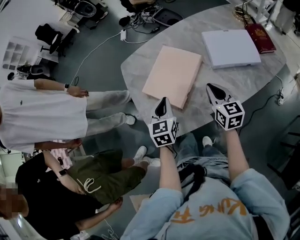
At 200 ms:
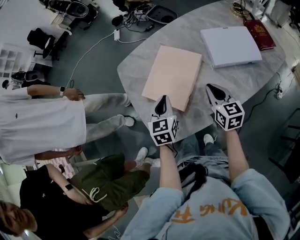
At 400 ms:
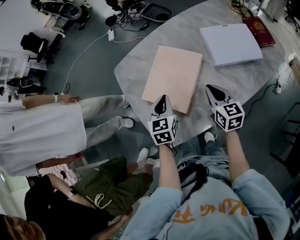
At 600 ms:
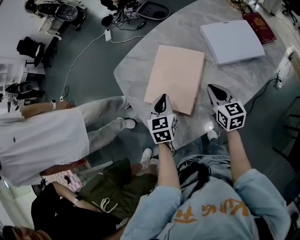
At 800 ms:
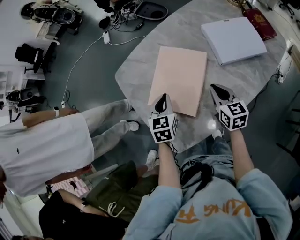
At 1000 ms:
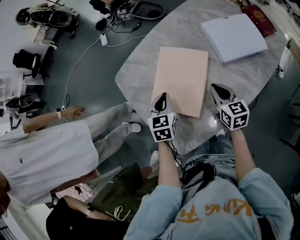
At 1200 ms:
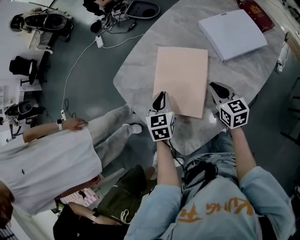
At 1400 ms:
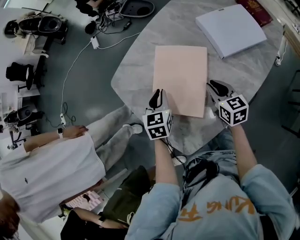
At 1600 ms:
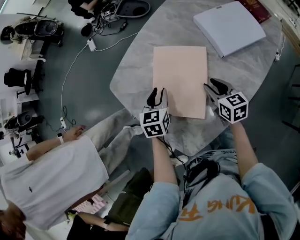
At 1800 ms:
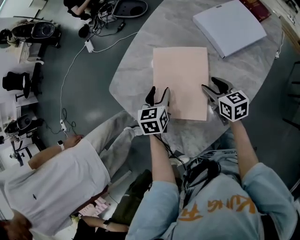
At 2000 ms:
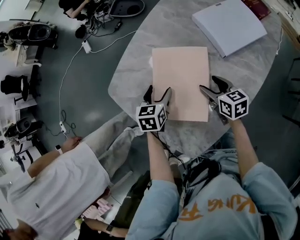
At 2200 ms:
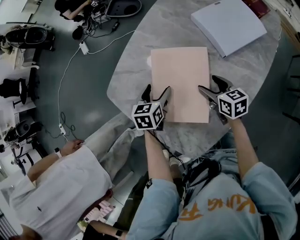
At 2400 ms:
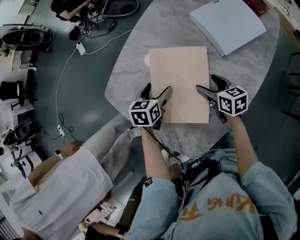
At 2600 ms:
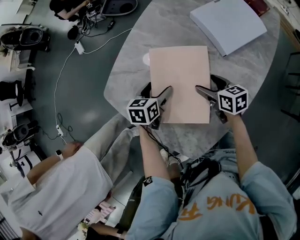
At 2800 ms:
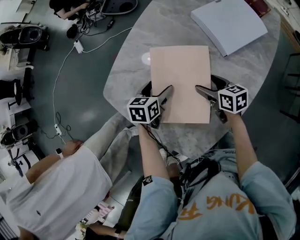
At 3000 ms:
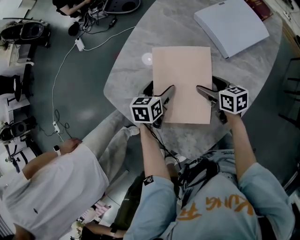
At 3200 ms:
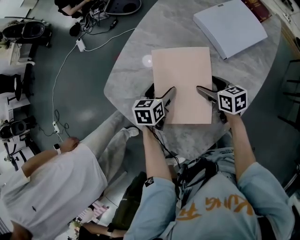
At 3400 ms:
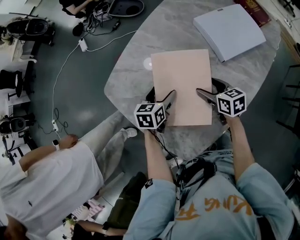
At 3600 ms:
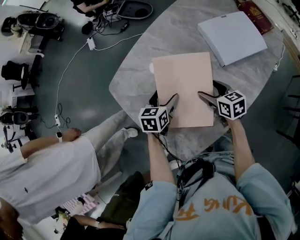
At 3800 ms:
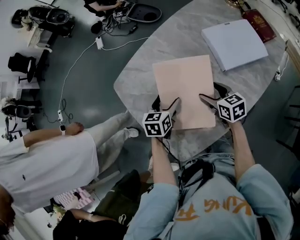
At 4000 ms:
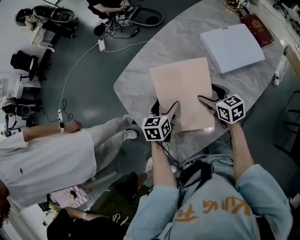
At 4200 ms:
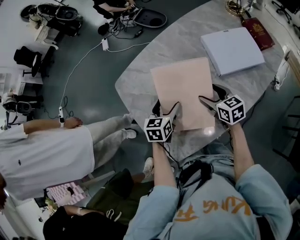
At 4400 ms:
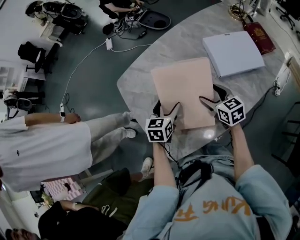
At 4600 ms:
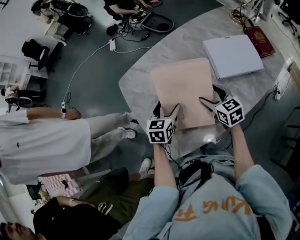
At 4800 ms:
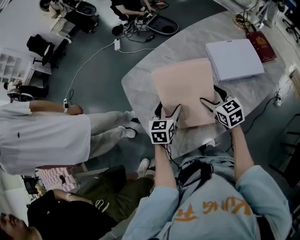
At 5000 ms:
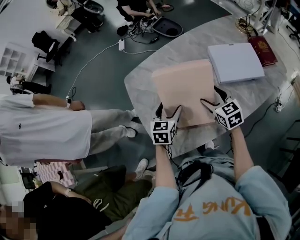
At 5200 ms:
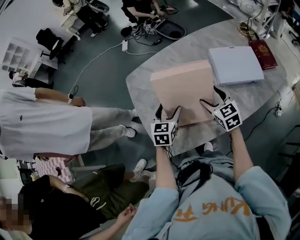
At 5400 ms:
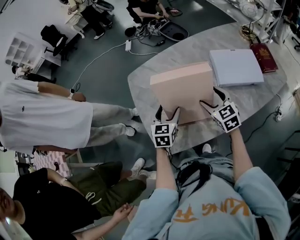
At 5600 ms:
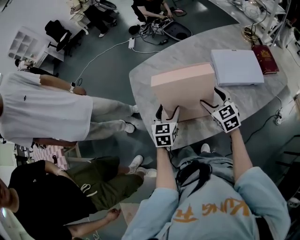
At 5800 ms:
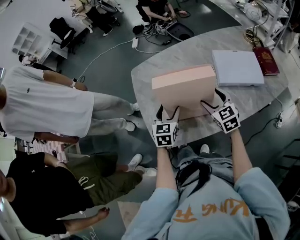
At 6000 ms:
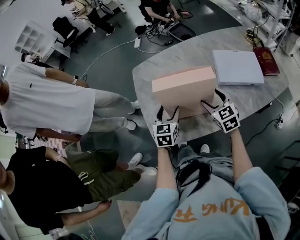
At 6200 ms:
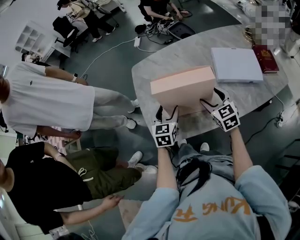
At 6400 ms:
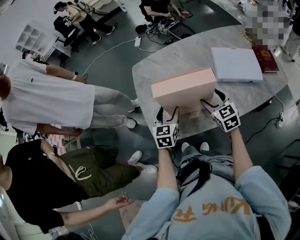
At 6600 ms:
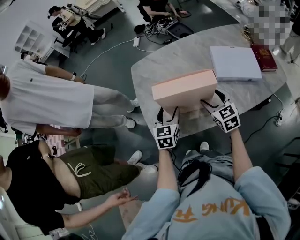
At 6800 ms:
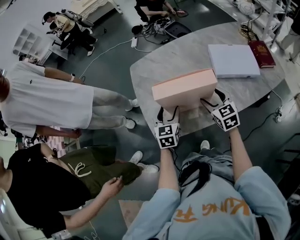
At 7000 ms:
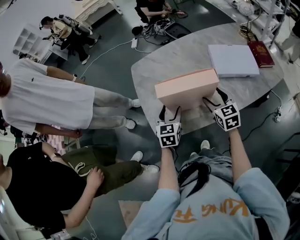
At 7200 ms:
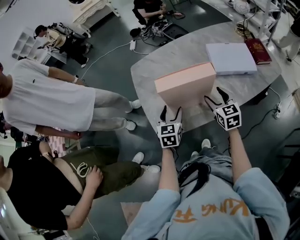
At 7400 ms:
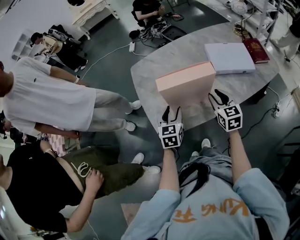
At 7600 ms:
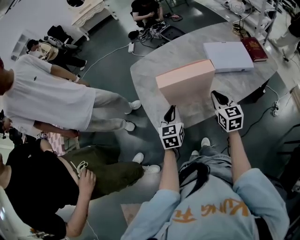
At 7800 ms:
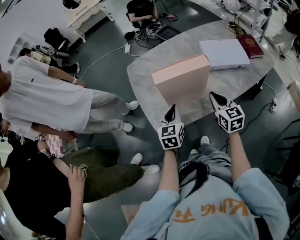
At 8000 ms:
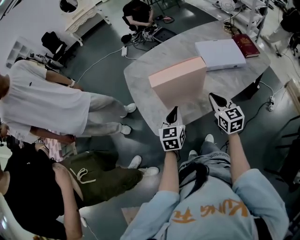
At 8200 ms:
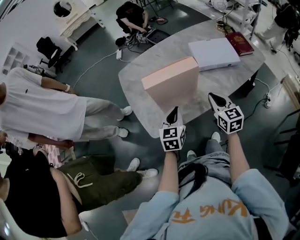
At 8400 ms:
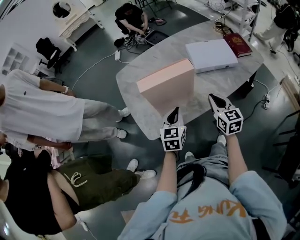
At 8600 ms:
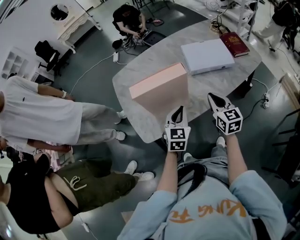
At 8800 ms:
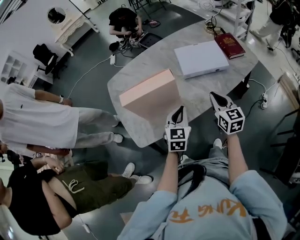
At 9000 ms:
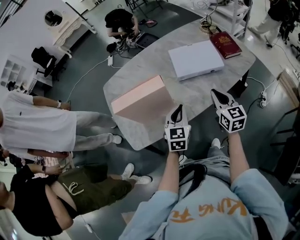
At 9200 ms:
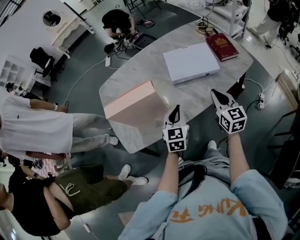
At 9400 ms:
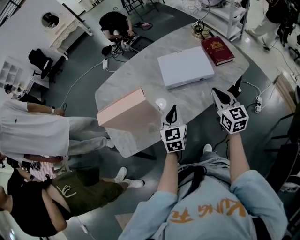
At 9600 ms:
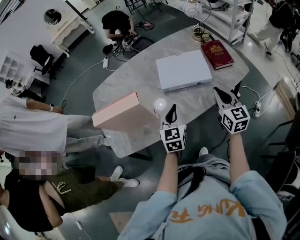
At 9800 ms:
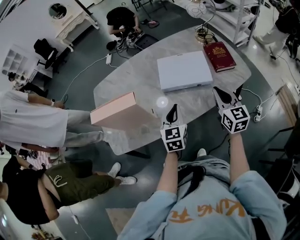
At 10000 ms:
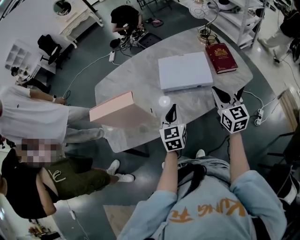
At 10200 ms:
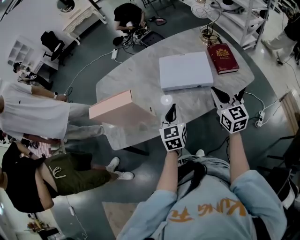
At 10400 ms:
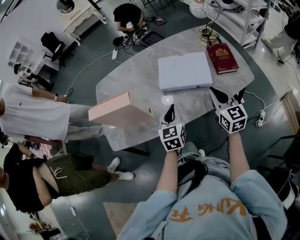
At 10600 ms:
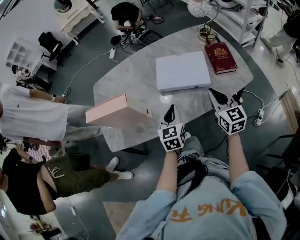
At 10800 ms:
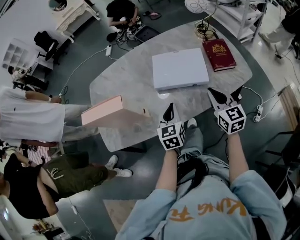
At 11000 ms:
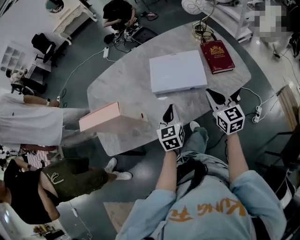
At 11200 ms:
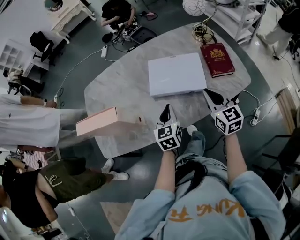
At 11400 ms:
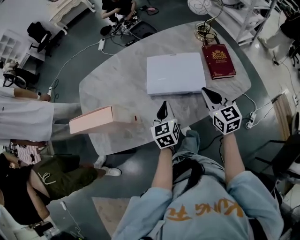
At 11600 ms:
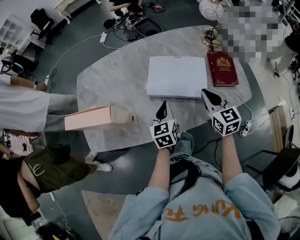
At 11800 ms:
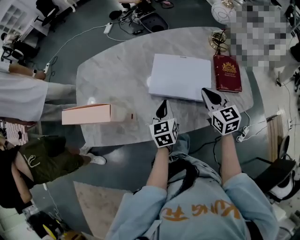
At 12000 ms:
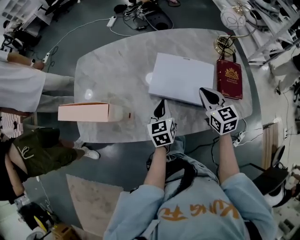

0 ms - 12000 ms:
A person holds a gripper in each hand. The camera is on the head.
0 ms - 1600 ms: The right gripper heads downward, forward and to the left, covering approximately 15 cm, and rotates approximately 20 degrees. Meanwhile the left gripper goes about 20 cm forward and downward, and rotates approximately 30 degrees.
1600 ms - 3000 ms: The left gripper shifts some 5 cm downward, turns by about 20 degrees, and opens its fingers. The right gripper shifts by some 5 cm, and opens its fingers.
3000 ms - 4400 ms: The left gripper moves backward and upward, about 10 cm, and swivels approximately 30 degrees; the right gripper moves upward, roughly 10 cm, and swivels some 30 degrees.
4400 ms - 6000 ms: The right gripper shifts about 10 cm backward and upward, and turns by approximately 30 degrees. Meanwhile the left gripper moves backward, approximately 10 cm, and swivels approximately 20 degrees.
6000 ms - 7600 ms: The grippers both shift backward by some 10 cm. The left gripper closes up; the right gripper rotates approximately 20 degrees, and closes.
7600 ms - 9000 ms: The grippers both shift to the right by about 20 cm.
9000 ms - 10400 ms: Both grippers move to the right and forward, roughly 15 cm. The left gripper rotates about 20 degrees.
10400 ms - 12000 ms: The left gripper heads forward and downward, covering approximately 15 cm, while the right gripper shifts approximately 15 cm forward, and rotates some 20 degrees.

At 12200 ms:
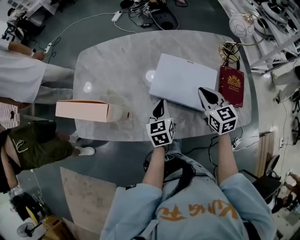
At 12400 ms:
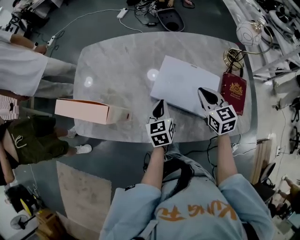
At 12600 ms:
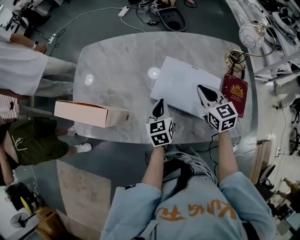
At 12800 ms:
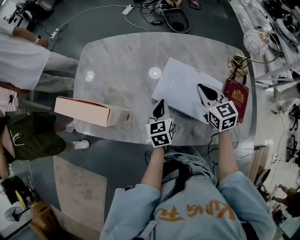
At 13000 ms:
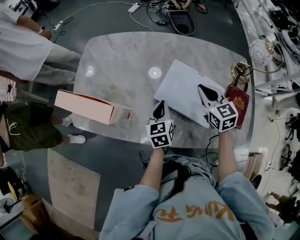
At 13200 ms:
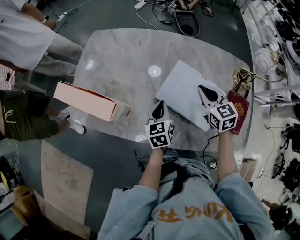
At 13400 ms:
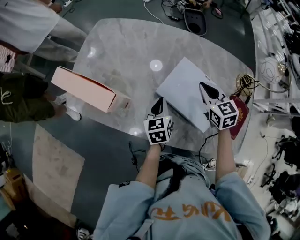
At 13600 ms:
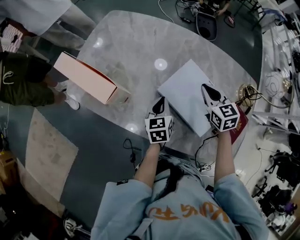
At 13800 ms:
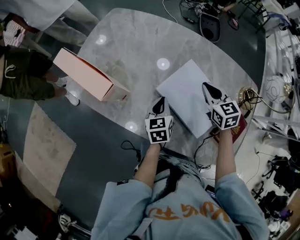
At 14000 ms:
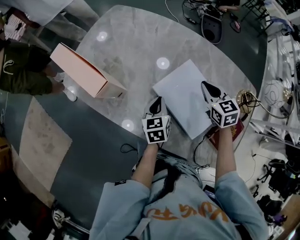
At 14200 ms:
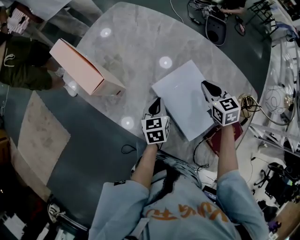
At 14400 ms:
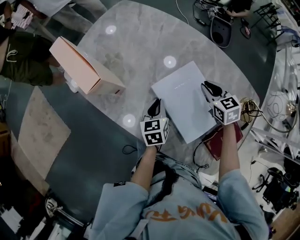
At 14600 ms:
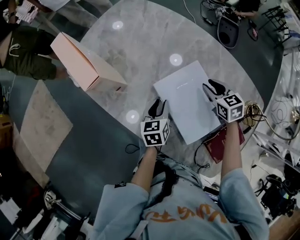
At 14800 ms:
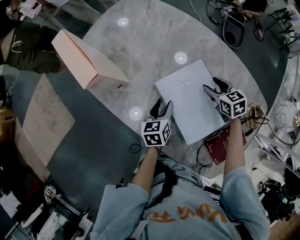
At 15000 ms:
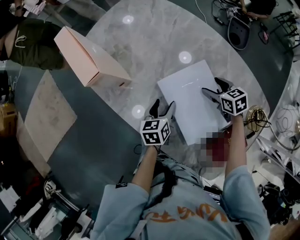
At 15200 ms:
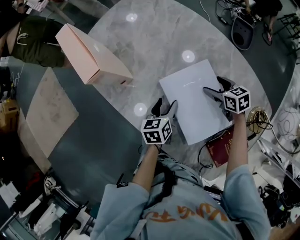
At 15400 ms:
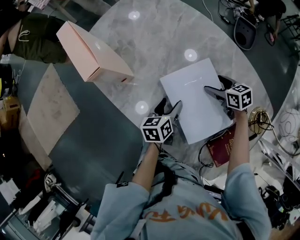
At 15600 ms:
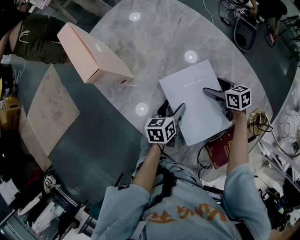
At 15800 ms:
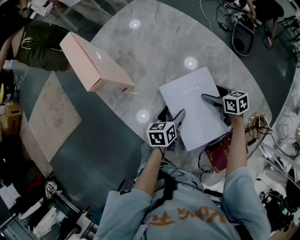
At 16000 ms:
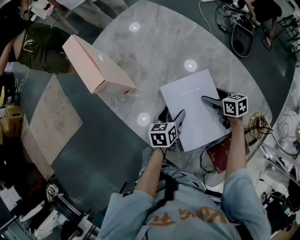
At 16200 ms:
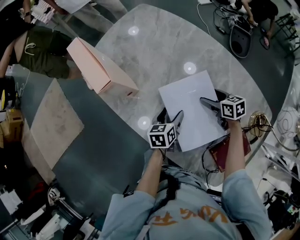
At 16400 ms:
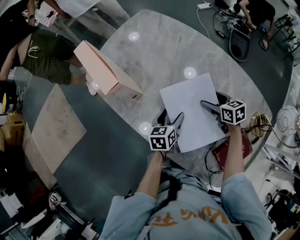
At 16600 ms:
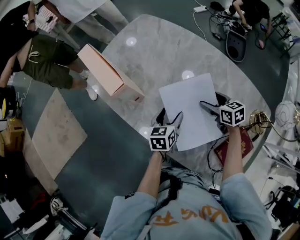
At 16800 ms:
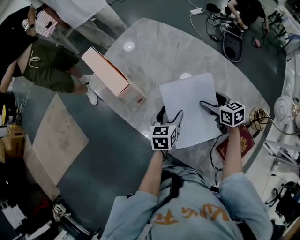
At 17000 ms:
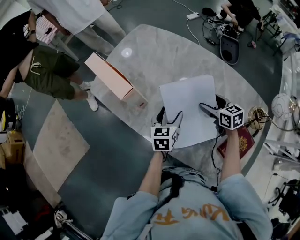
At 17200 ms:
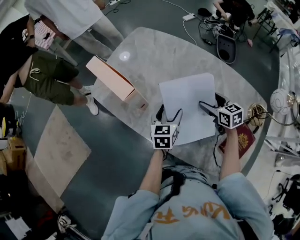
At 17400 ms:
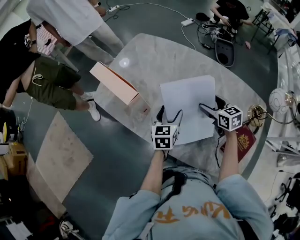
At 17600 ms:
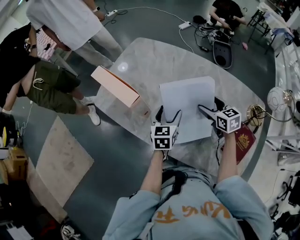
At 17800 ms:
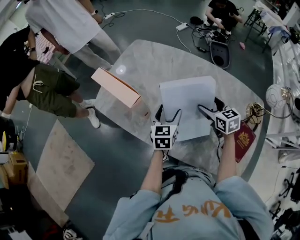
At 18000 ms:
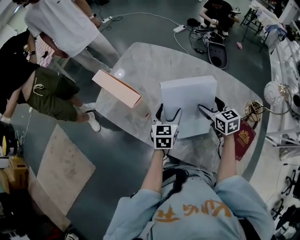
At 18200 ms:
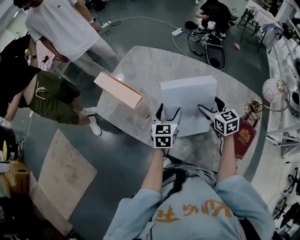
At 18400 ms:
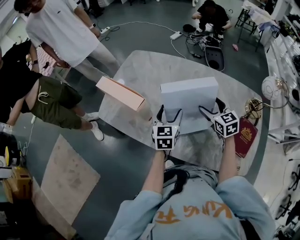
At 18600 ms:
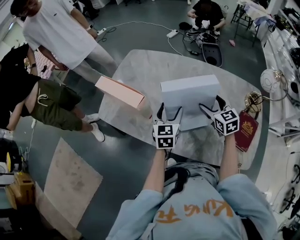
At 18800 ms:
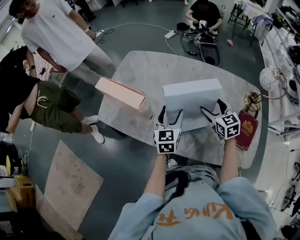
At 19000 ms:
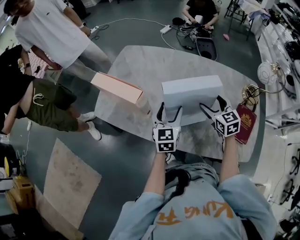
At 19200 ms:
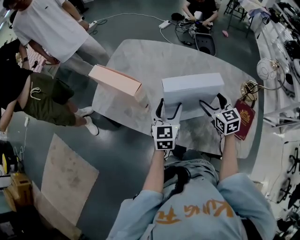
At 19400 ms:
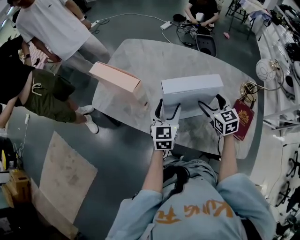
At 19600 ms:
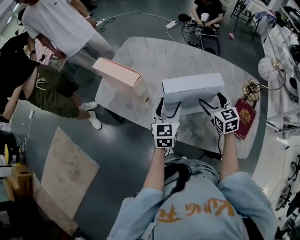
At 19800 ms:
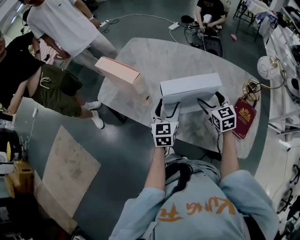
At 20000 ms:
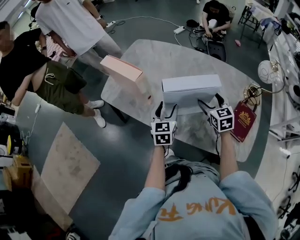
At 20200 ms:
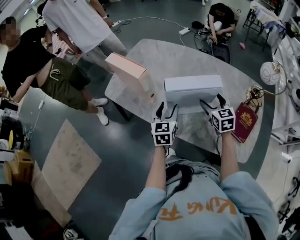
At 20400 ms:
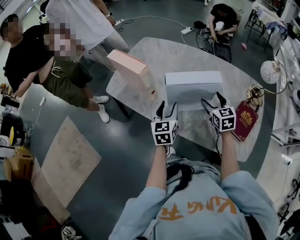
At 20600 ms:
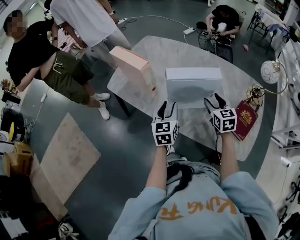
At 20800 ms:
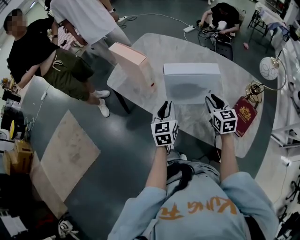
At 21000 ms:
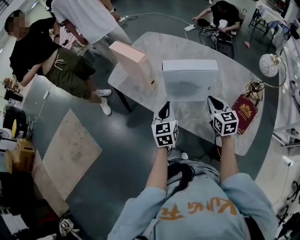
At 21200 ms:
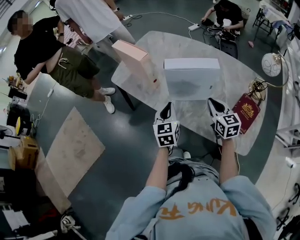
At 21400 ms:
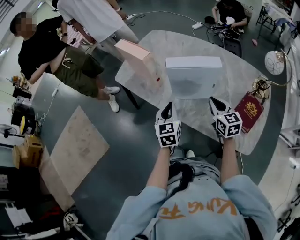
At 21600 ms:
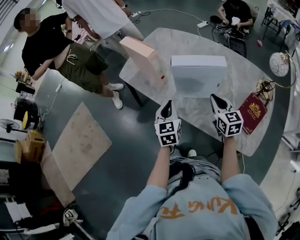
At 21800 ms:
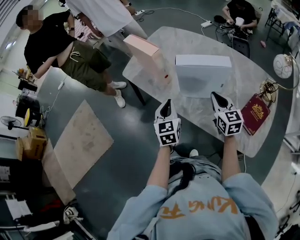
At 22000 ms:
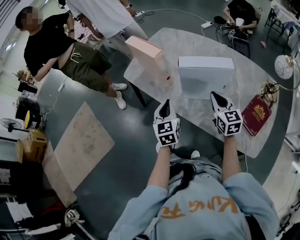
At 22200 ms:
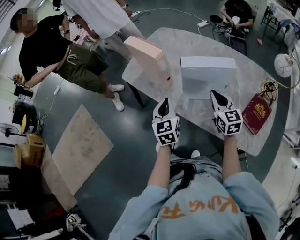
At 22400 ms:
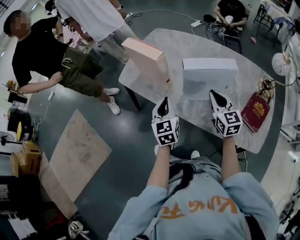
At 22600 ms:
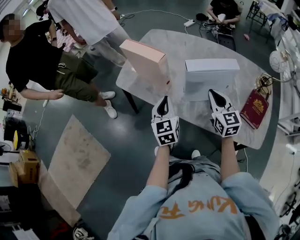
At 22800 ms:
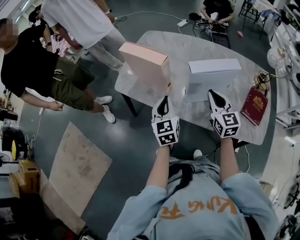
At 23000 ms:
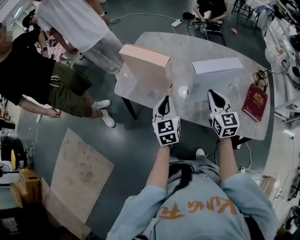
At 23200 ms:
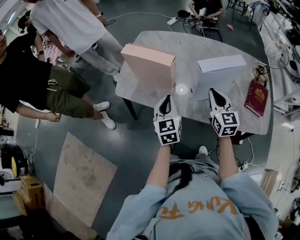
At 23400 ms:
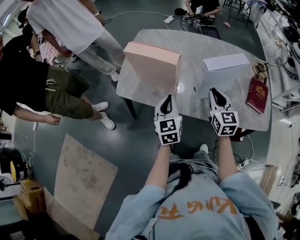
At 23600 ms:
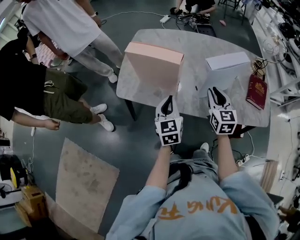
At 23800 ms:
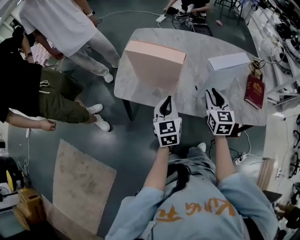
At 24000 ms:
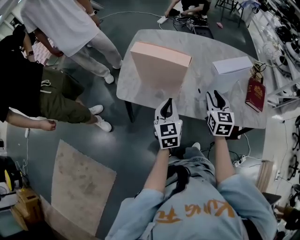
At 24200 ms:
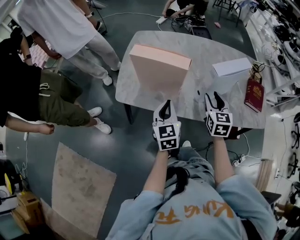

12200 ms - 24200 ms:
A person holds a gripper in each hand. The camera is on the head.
12200 ms - 13800 ms: The left gripper swivels about 30 degrees; the right gripper heads forward, covering roughly 15 cm, and rotates roughly 30 degrees.
13800 ms - 15200 ms: The right gripper is displaced downward by roughly 10 cm, rotates roughly 30 degrees, and opens its fingers; the left gripper shifts by about 5 cm, and opens.
15200 ms - 16600 ms: The right gripper goes about 5 cm to the left, while the left gripper ends up approximately 5 cm from where it was.
16600 ms - 18200 ms: Both grippers move upward, approximately 10 cm. The left gripper changes its angle by roughly 30 degrees, while the right gripper rotates approximately 30 degrees.
18200 ms - 19800 ms: Both grippers travel together backward, some 10 cm.
19800 ms - 21200 ms: Both grippers travel together backward, about 10 cm. The right gripper closes up, while the left gripper closes.
21200 ms - 22600 ms: The two grippers go roughly 10 cm to the left and forward.
22600 ms - 24200 ms: The left gripper changes place by roughly 15 cm, and changes its angle by some 20 degrees; the right gripper moves about 10 cm, and rotates approximately 40 degrees.
